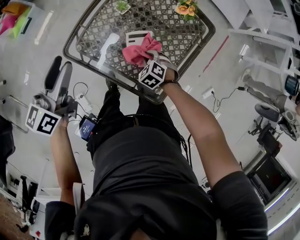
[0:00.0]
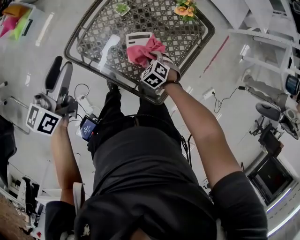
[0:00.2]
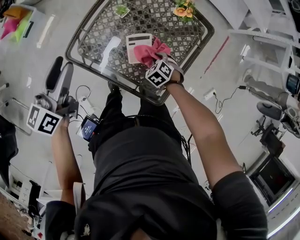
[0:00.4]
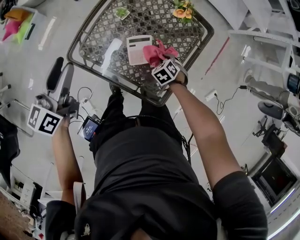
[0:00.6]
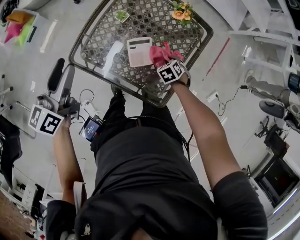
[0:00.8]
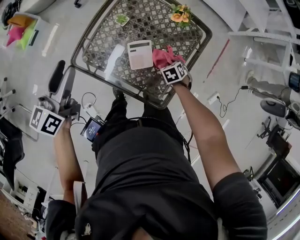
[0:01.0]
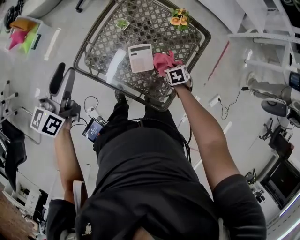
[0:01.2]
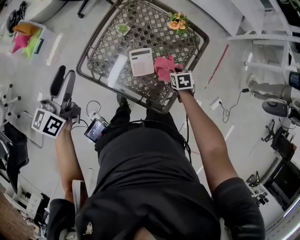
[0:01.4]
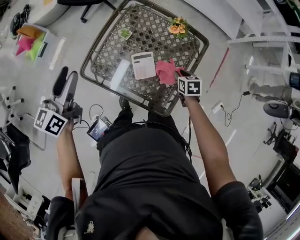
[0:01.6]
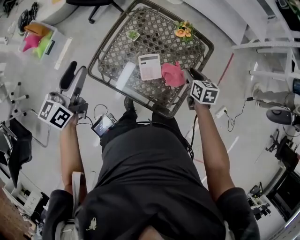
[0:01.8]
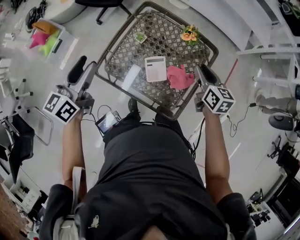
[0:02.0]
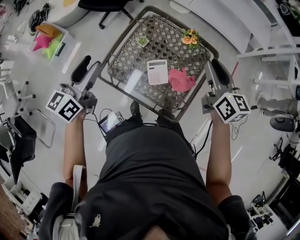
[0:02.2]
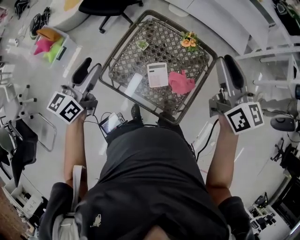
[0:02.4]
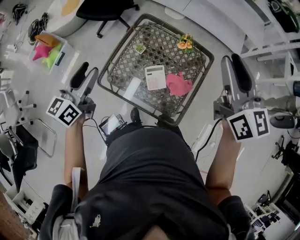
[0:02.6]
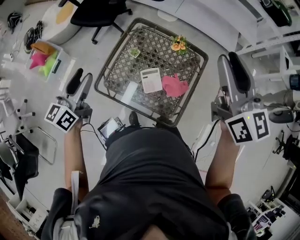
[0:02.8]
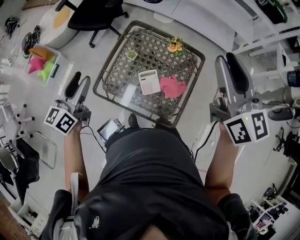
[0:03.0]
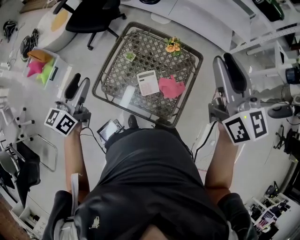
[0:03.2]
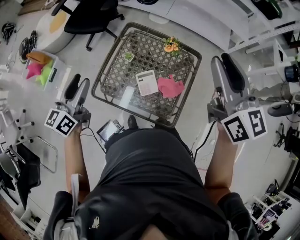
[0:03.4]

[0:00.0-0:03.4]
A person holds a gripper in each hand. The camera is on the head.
0:00.0 to 0:01.6: The right gripper ends up about 20 cm from where it was, and twists some 60 degrees clockwise, seen from behind, while the left gripper is displaced upward by about 5 cm.
0:01.6 to 0:03.4: The left gripper goes some 5 cm upward. Meanwhile the right gripper moves upward, some 50 cm, and points its fingers about 60 degrees further upward.

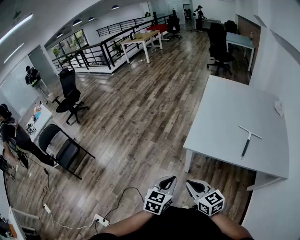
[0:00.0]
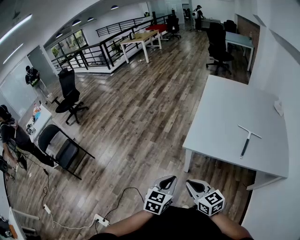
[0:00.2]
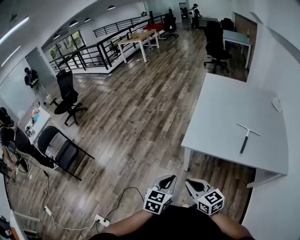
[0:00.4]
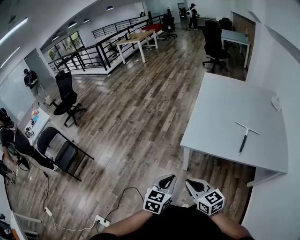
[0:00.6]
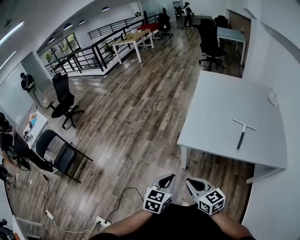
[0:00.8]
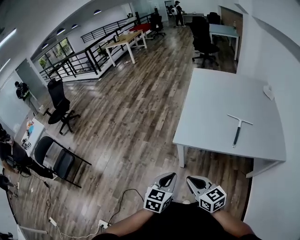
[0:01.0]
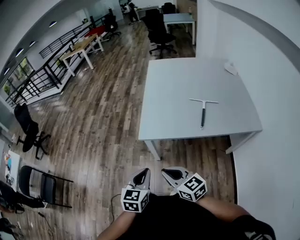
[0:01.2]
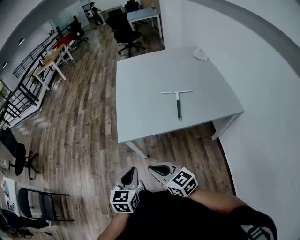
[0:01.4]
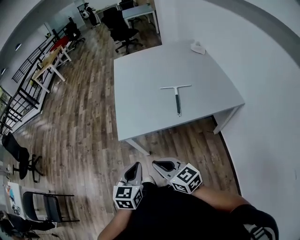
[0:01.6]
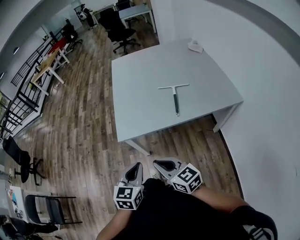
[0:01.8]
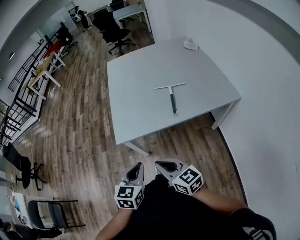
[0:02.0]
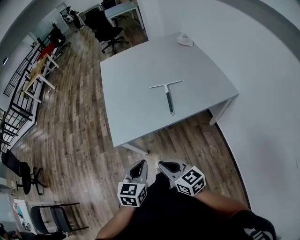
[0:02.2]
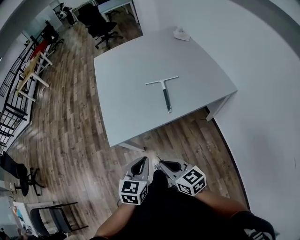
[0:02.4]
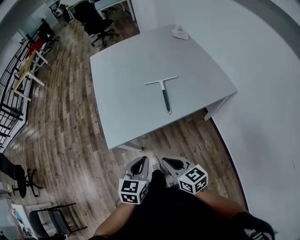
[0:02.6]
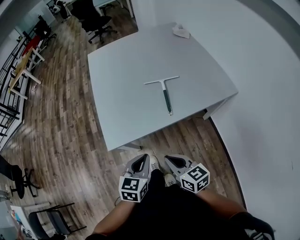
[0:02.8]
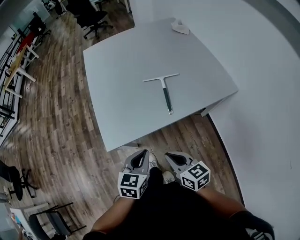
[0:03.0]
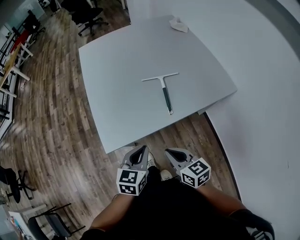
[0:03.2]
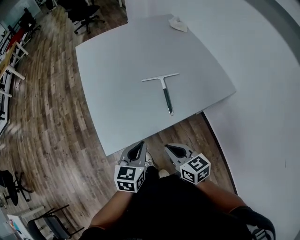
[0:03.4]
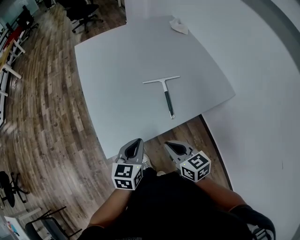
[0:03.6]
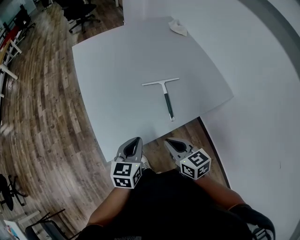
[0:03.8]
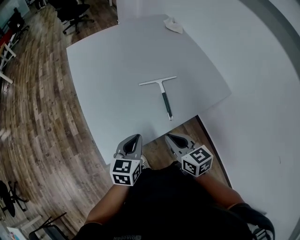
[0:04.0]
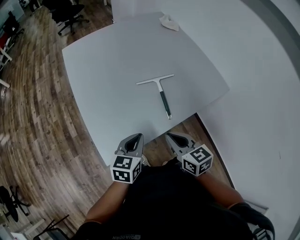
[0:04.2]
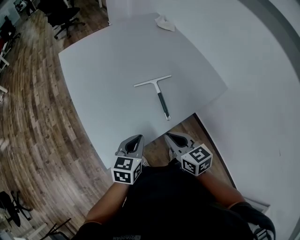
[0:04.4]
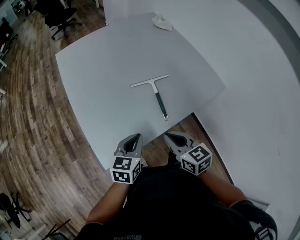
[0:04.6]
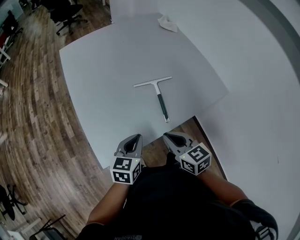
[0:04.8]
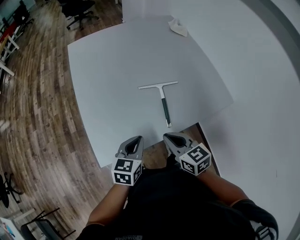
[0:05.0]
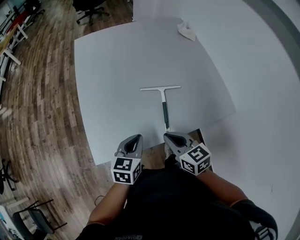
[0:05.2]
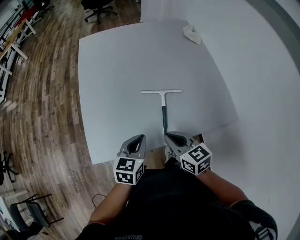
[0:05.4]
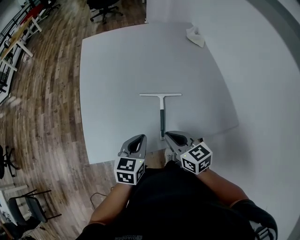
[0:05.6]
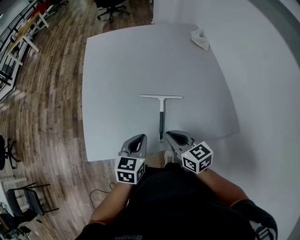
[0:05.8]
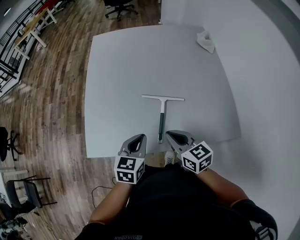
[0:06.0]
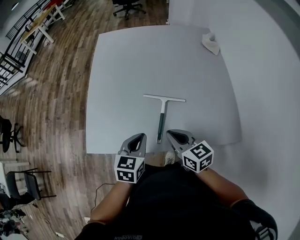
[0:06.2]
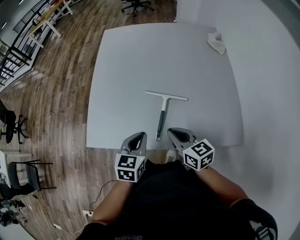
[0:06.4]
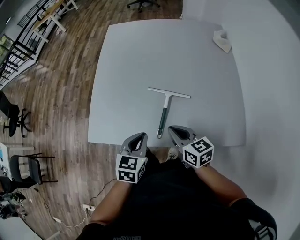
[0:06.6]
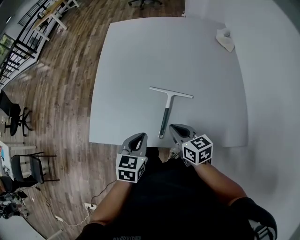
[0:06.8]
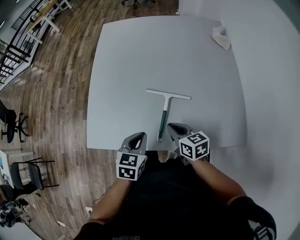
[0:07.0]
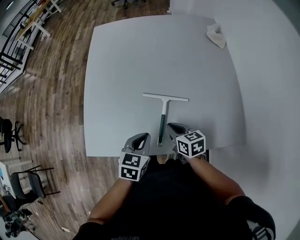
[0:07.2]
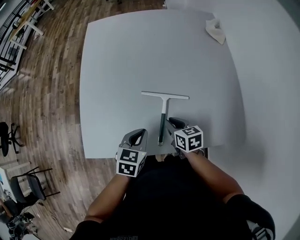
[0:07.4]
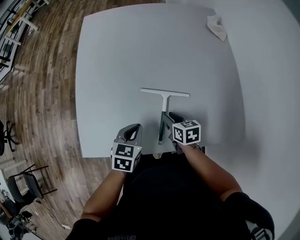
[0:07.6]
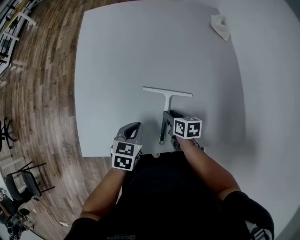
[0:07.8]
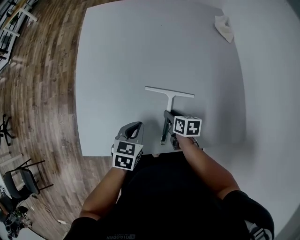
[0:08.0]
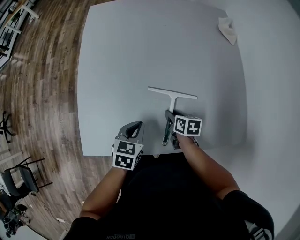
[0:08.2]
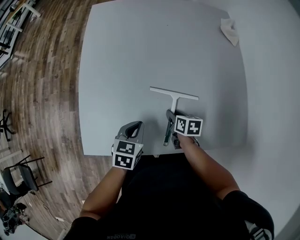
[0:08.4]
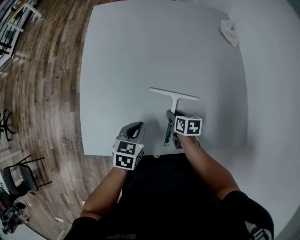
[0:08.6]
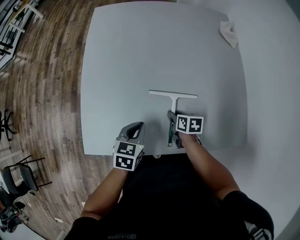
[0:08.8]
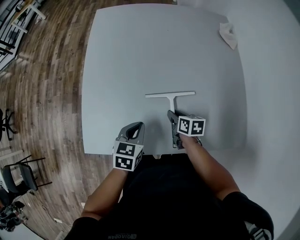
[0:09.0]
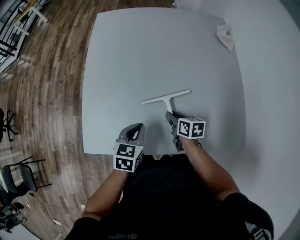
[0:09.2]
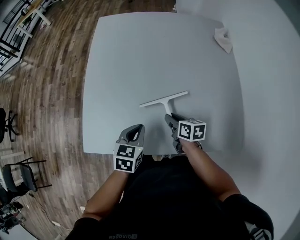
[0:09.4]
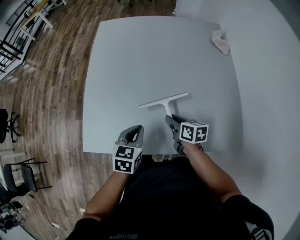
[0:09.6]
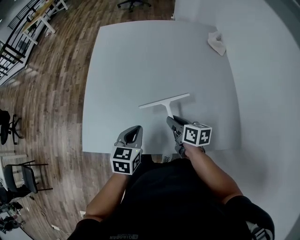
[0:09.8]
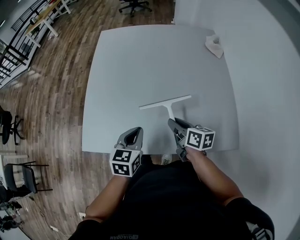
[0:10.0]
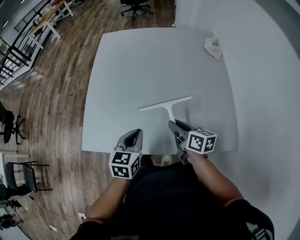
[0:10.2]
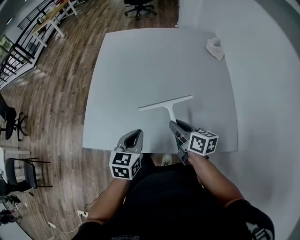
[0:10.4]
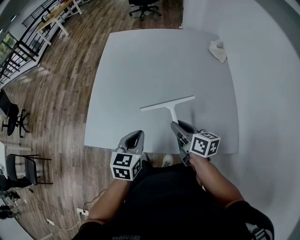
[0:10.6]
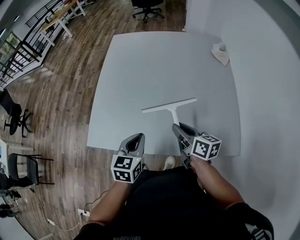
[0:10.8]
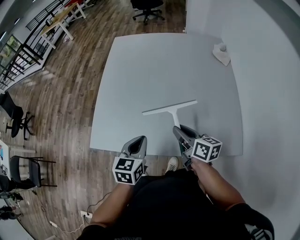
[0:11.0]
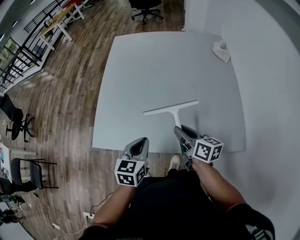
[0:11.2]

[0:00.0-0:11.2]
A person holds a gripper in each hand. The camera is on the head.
0:00.0 to 0:01.6: The grippers both shift to the right by about 10 cm.
0:01.6 to 0:03.2: The right gripper shifts some 15 cm forward, to the right and downward, and changes its angle by roughly 30 degrees; the left gripper heads forward and to the right, covering approximately 15 cm, and changes its angle by approximately 20 degrees.
0:03.2 to 0:04.8: Both grippers move forward, roughly 10 cm.
0:04.8 to 0:06.4: The left gripper ends up roughly 15 cm from where it was, and rotates approximately 30 degrees; the right gripper moves some 15 cm, and swivels some 30 degrees.
0:06.4 to 0:08.0: The right gripper heads downward and forward, covering roughly 25 cm, rotates about 40 degrees, and opens, while the left gripper goes approximately 15 cm downward and forward.
0:08.0 to 0:09.6: The left gripper goes some 5 cm upward. Meanwhile the right gripper moves upward, approximately 10 cm.
0:09.6 to 0:11.2: The right gripper moves upward and backward, approximately 15 cm; the left gripper travels backward and upward by roughly 10 cm.

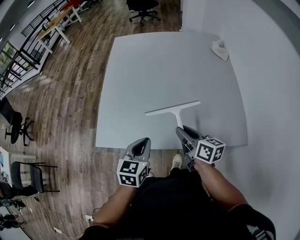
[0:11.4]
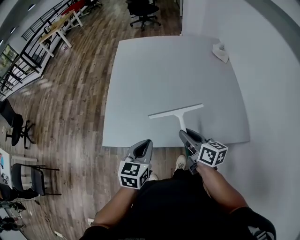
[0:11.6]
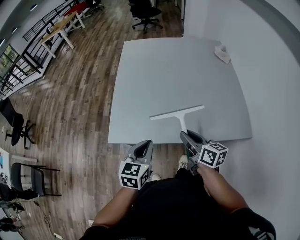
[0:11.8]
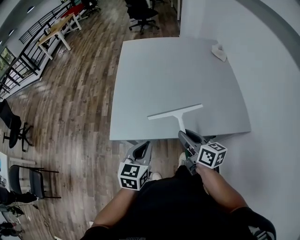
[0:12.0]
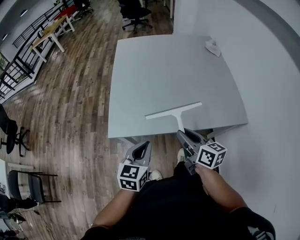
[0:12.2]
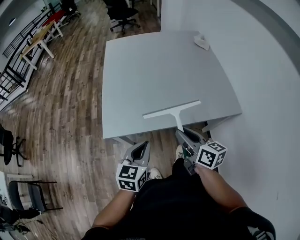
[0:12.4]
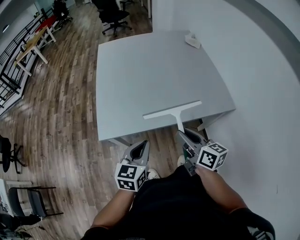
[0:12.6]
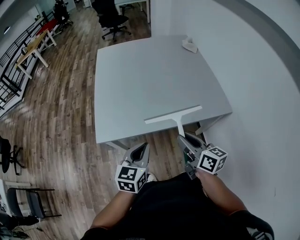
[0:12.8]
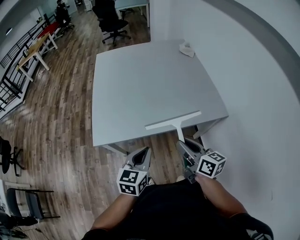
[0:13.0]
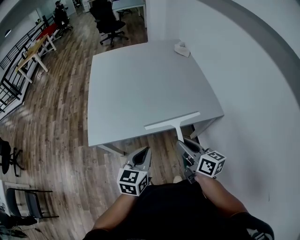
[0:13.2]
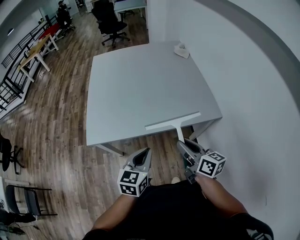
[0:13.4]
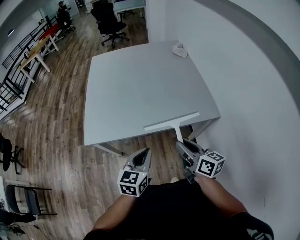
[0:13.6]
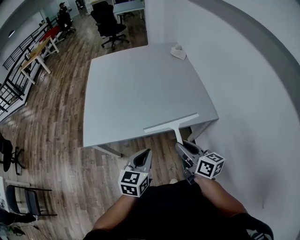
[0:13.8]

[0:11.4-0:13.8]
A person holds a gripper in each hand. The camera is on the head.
0:11.4 to 0:12.6: The right gripper travels backward by about 20 cm. Meanwhile the left gripper moves backward and to the left, some 15 cm.
0:12.6 to 0:13.8: Both grippers travel together to the right, approximately 15 cm.

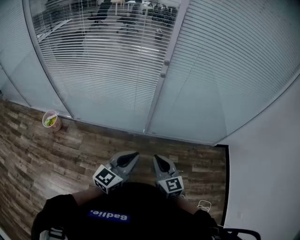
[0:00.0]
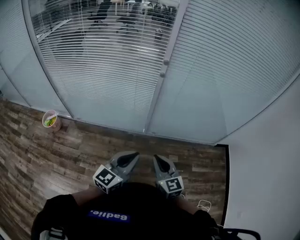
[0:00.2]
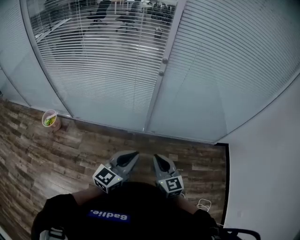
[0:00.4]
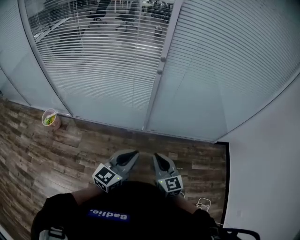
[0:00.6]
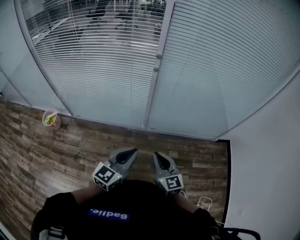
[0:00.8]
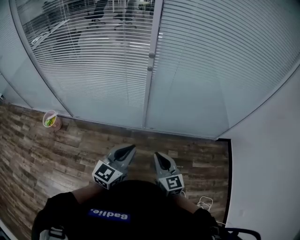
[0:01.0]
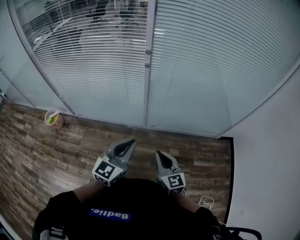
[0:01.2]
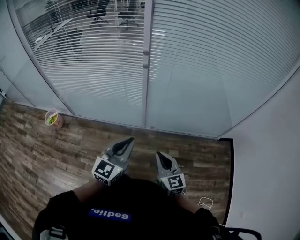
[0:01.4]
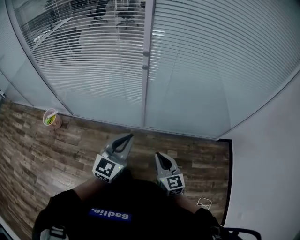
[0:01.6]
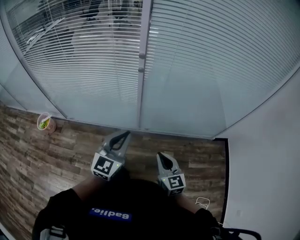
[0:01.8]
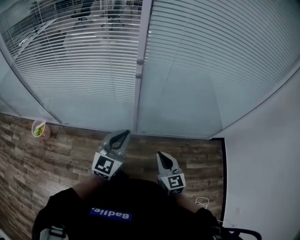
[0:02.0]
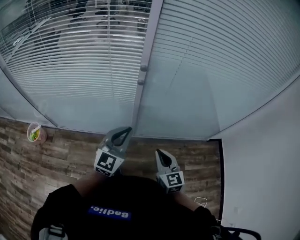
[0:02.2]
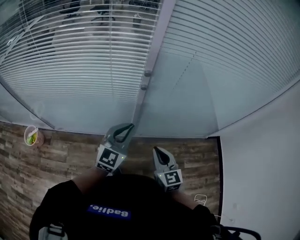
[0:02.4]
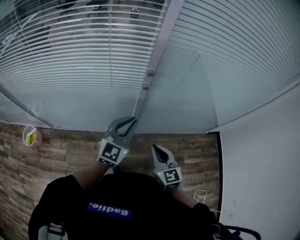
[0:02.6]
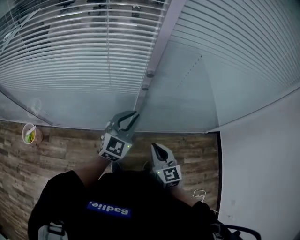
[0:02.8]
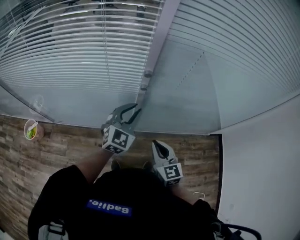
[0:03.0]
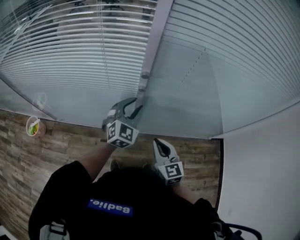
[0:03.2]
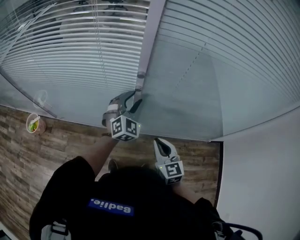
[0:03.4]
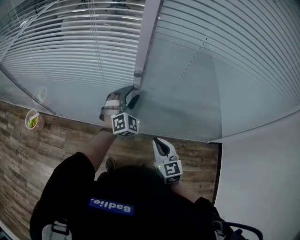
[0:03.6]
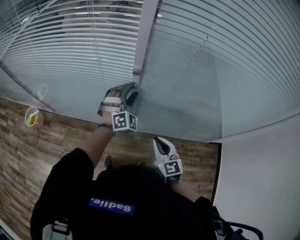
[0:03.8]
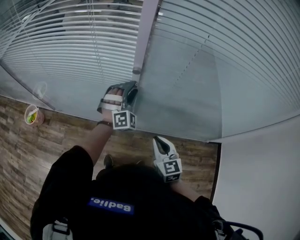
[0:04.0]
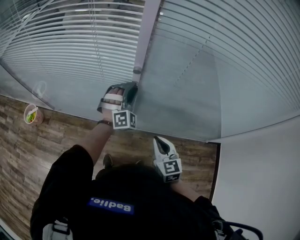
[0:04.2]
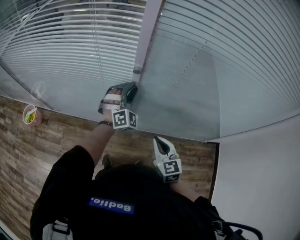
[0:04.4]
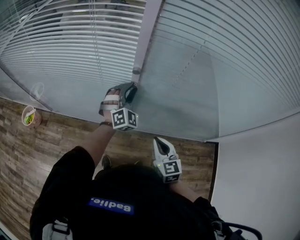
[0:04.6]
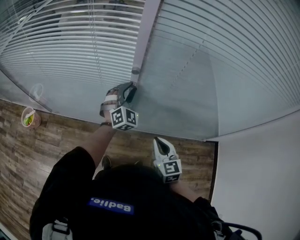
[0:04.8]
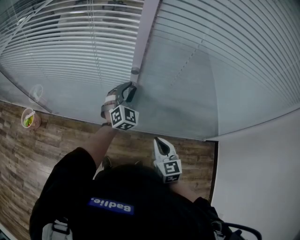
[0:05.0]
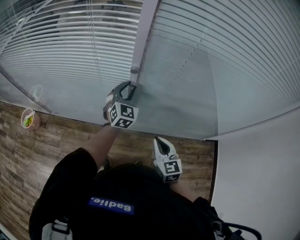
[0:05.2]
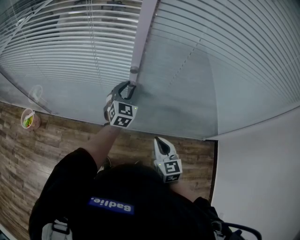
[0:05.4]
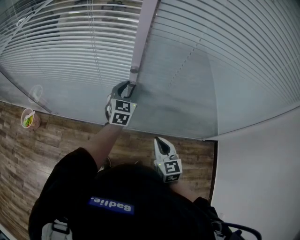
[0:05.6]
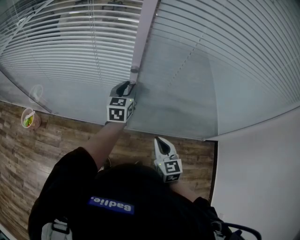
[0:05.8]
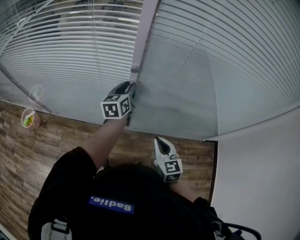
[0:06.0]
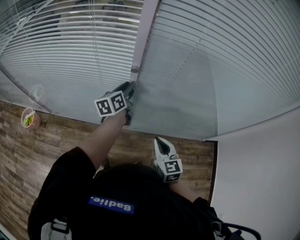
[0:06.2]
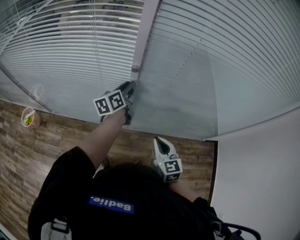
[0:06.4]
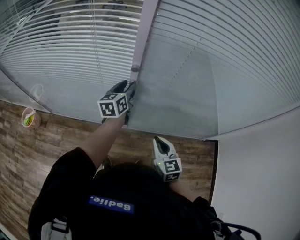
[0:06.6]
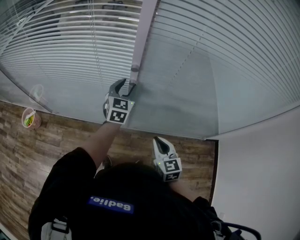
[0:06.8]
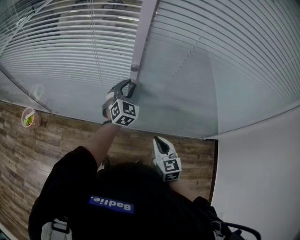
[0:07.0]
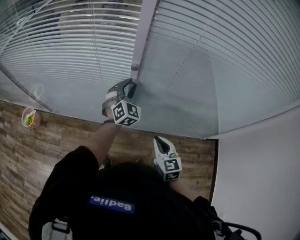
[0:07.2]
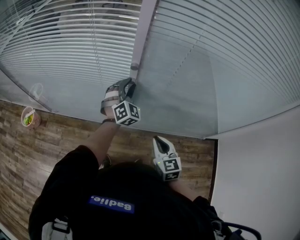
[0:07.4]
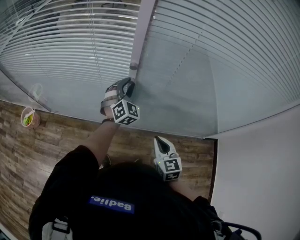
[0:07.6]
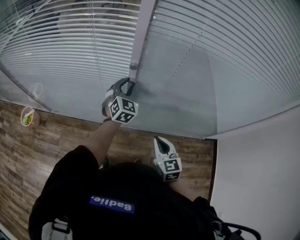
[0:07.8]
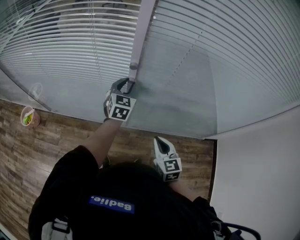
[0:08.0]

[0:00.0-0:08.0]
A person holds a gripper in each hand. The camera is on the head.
0:00.0 to 0:01.6: The left gripper travels forward and to the right by roughly 10 cm; the right gripper moves to the right, approximately 10 cm.
0:01.6 to 0:03.2: The right gripper shifts roughly 20 cm forward; the left gripper goes about 30 cm forward, changes its angle by approximately 20 degrees, and opens up.
0:03.2 to 0:04.8: The right gripper goes some 5 cm to the right, while the left gripper is displaced forward by roughly 5 cm, and swivels about 20 degrees.
0:04.8 to 0:06.4: The left gripper twists about 90 degrees counterclockwise, seen from behind.
0:06.4 to 0:08.0: The left gripper rotates around the line of its fingers by approximately 50 degrees, clockwise from behind.
